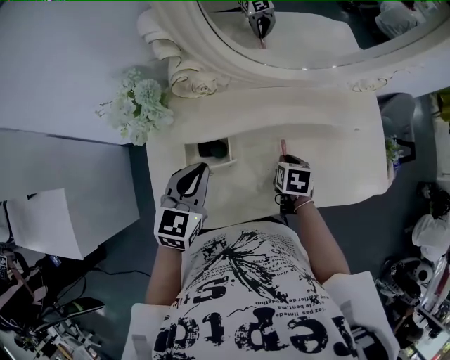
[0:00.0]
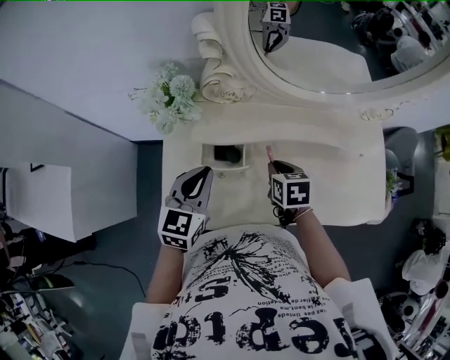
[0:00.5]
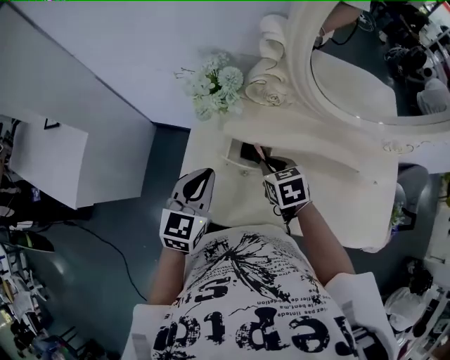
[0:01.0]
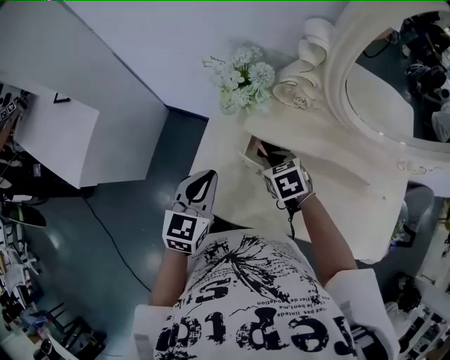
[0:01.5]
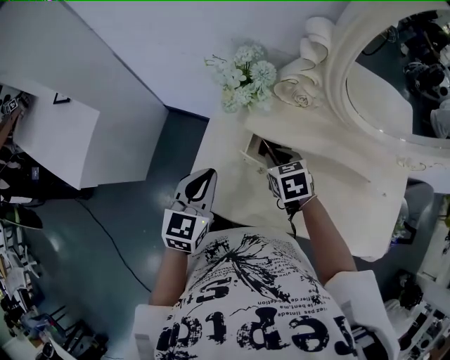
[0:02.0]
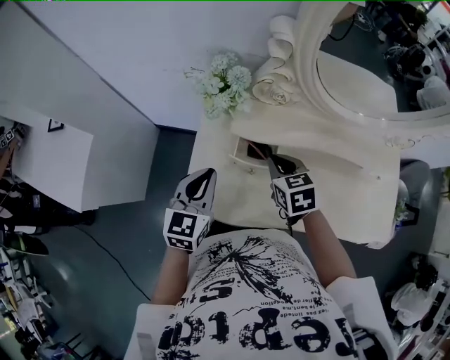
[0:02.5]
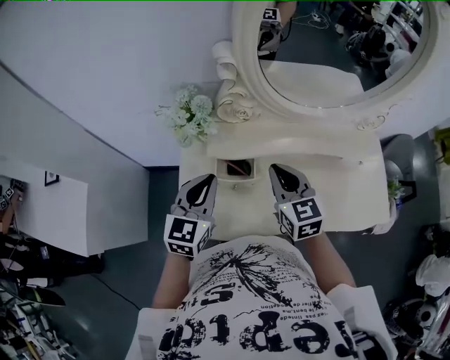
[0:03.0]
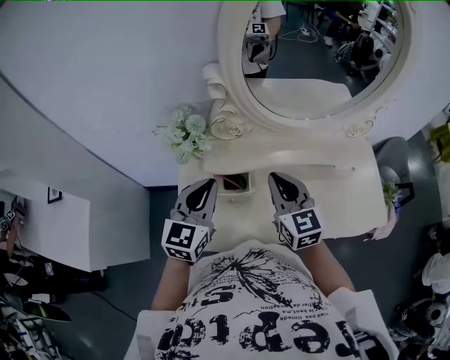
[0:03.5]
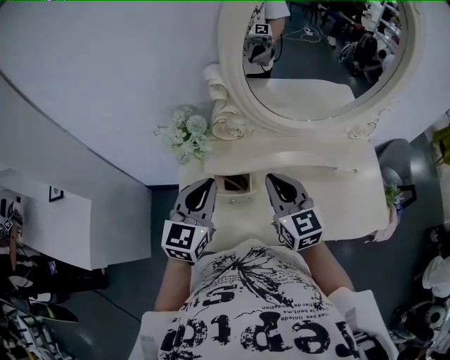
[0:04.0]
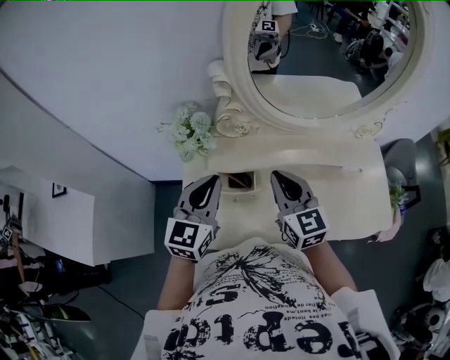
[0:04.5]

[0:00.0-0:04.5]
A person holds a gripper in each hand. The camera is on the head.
0:00.0 to 0:02.0: The left gripper shifts by about 15 cm, and rotates approximately 30 degrees, while the right gripper ends up about 25 cm from where it was, and rotates around the line of its fingers by about 40 degrees, counterclockwise from behind.
0:02.0 to 0:04.5: The right gripper travels upward and to the right by some 20 cm, and tips its fingers upward by some 40 degrees, while the left gripper shifts about 15 cm upward, to the right and forward, and rotates about 20 degrees.

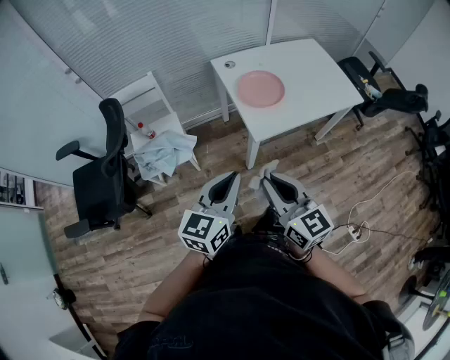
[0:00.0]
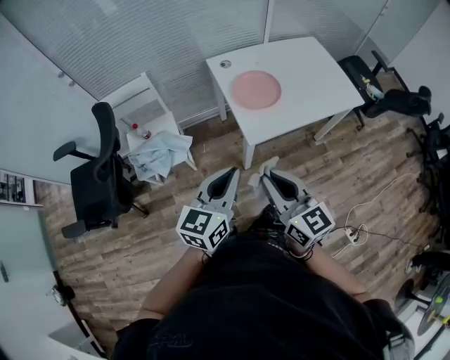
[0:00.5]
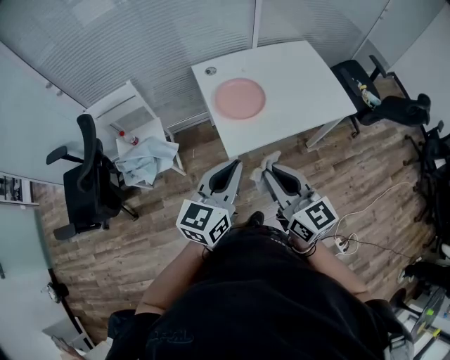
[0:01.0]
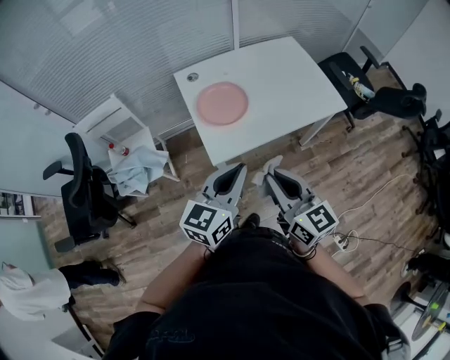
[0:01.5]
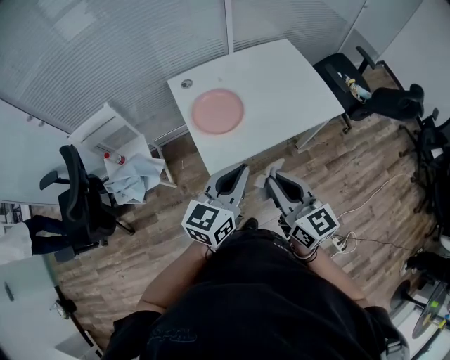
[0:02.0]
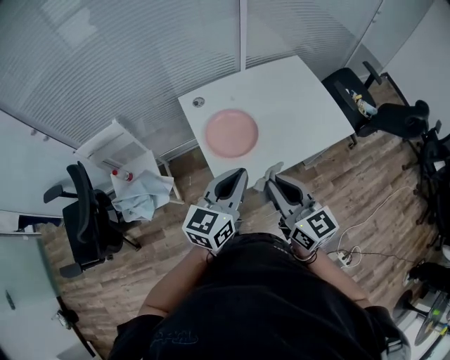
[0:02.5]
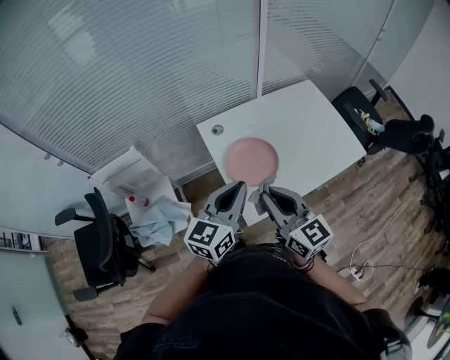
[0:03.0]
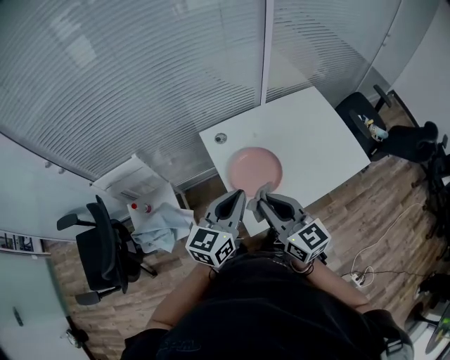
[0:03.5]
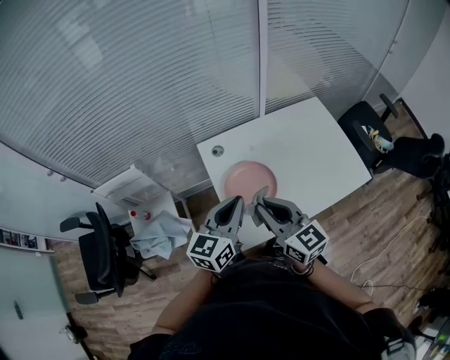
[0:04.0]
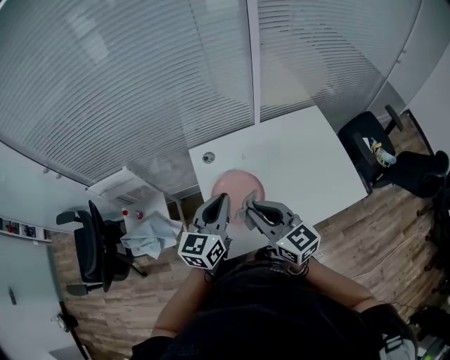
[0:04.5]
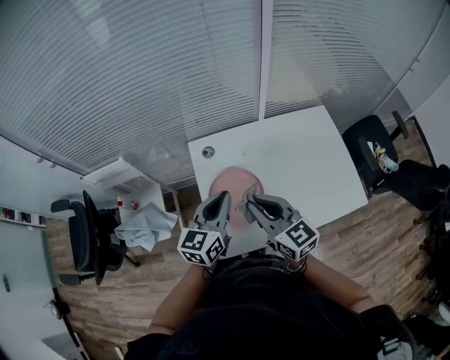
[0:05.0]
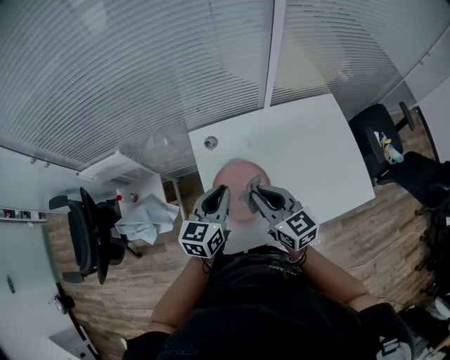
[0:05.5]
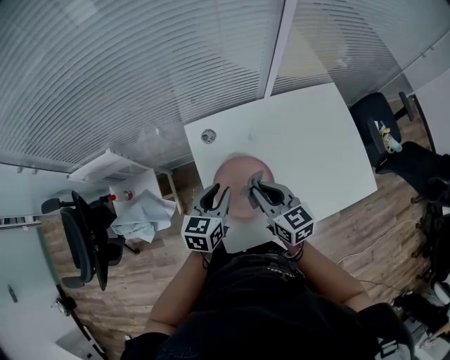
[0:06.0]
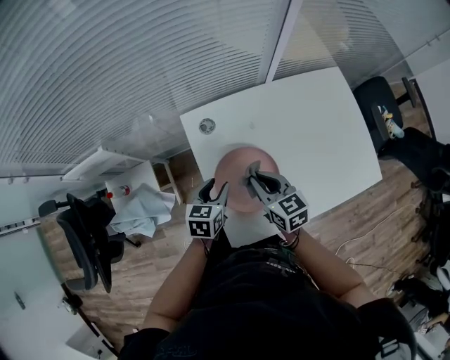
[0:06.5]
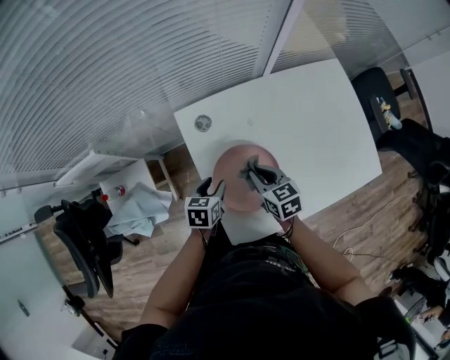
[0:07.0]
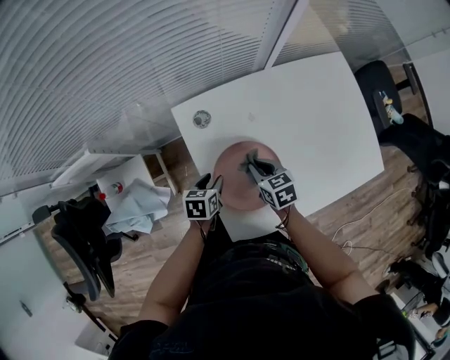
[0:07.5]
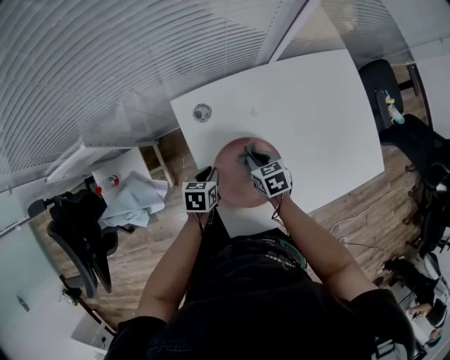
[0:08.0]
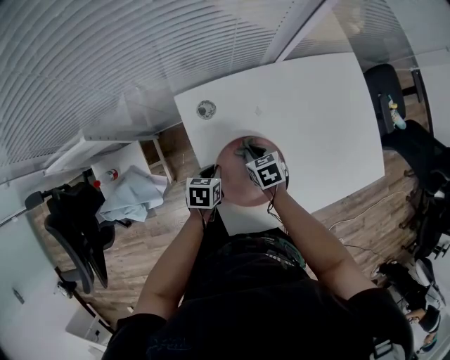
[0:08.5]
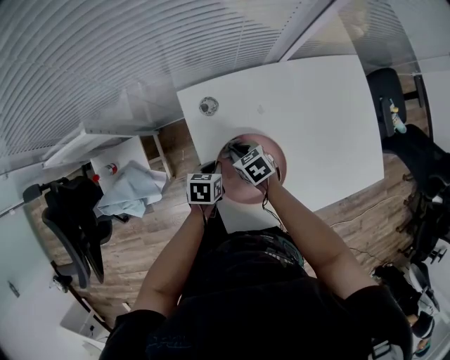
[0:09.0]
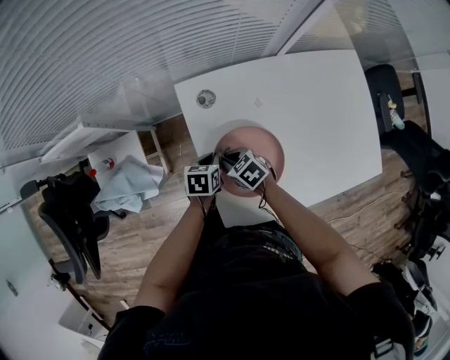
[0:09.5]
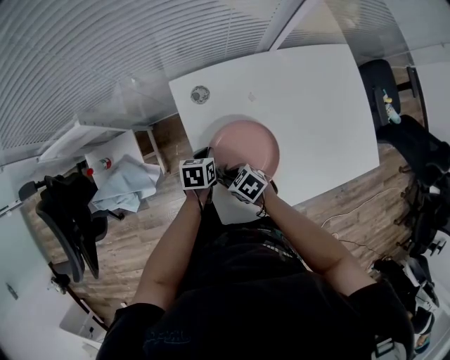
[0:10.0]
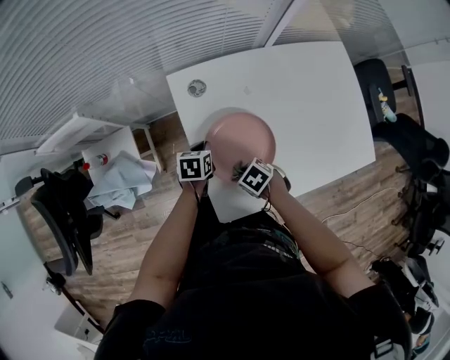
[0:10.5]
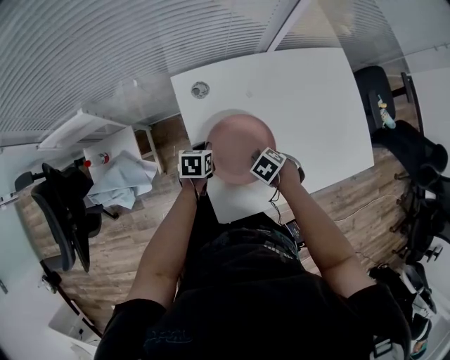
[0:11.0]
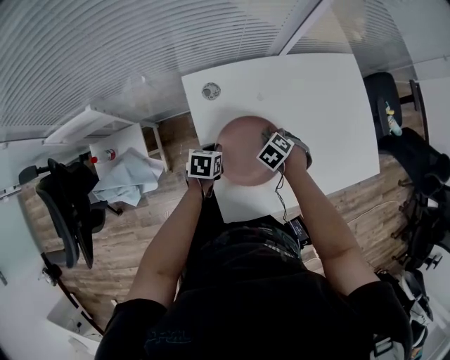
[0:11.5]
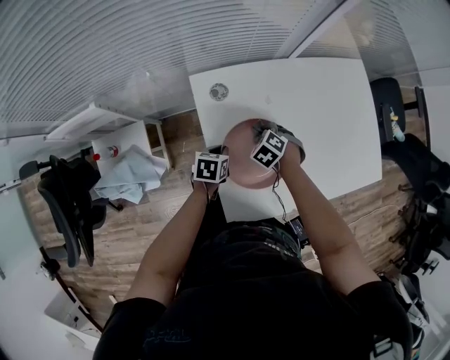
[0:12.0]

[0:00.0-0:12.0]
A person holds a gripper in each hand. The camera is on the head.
0:00.0 to 0:02.0: Both grippers travel together to the right and forward, roughly 30 cm.
0:02.0 to 0:04.0: Both grippers travel together forward and to the left, some 25 cm.
0:04.0 to 0:06.0: Both grippers travel together downward and forward, about 20 cm. The left gripper changes its angle by roughly 20 degrees, and opens its fingers.
0:06.0 to 0:08.0: Both grippers move downward, roughly 20 cm. The left gripper changes its angle by some 30 degrees; the right gripper points its fingers about 30 degrees further downward.
0:08.0 to 0:10.0: The right gripper ends up about 15 cm from where it was, and changes its angle by approximately 30 degrees.
0:10.0 to 0:12.0: The right gripper changes place by approximately 20 cm, and turns by some 40 degrees.

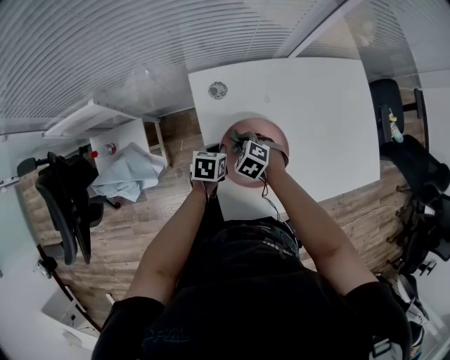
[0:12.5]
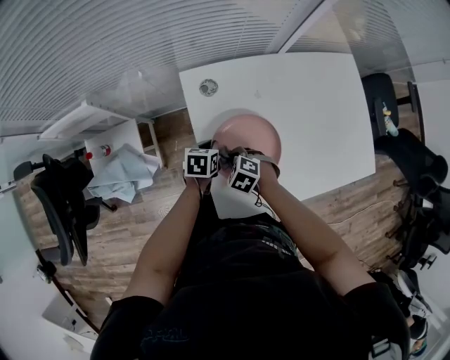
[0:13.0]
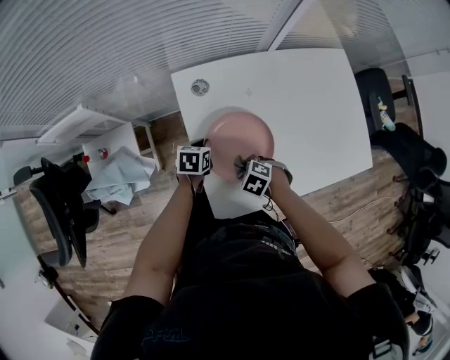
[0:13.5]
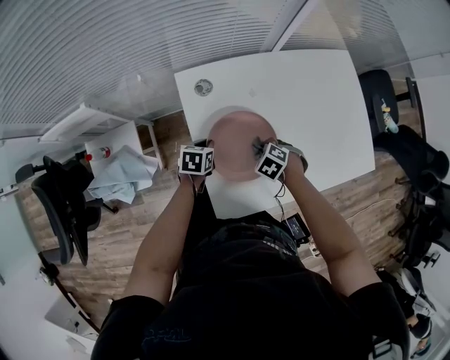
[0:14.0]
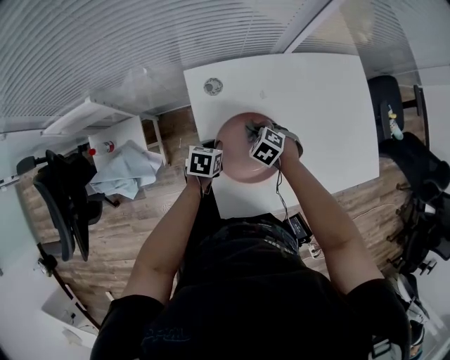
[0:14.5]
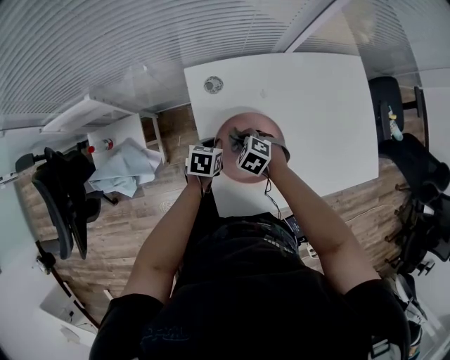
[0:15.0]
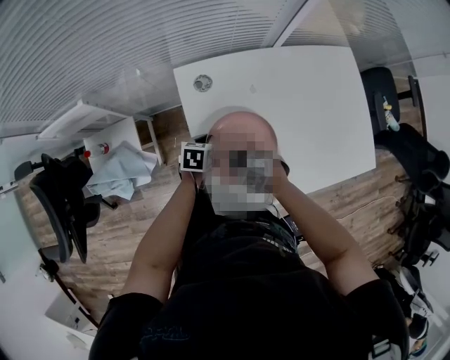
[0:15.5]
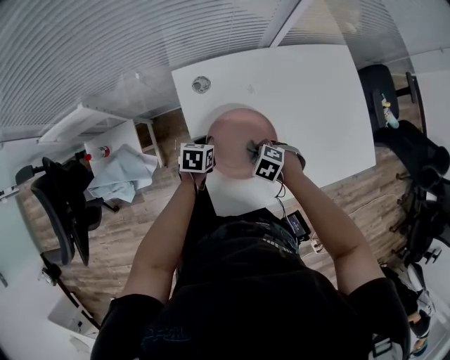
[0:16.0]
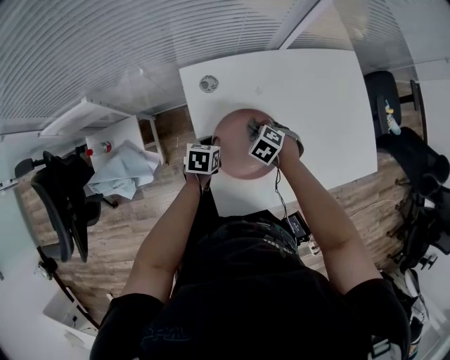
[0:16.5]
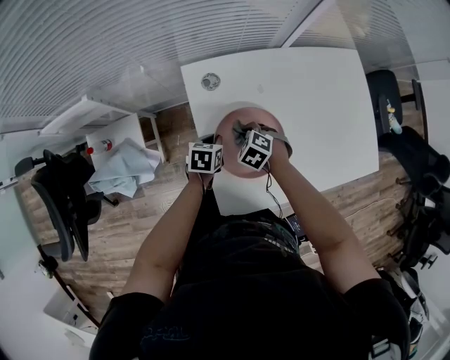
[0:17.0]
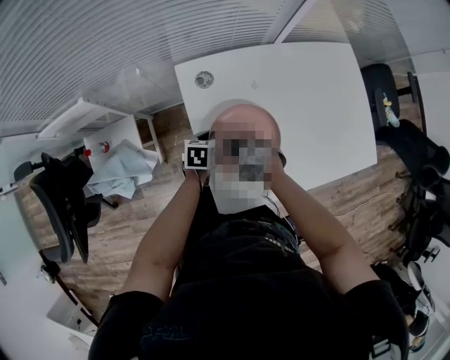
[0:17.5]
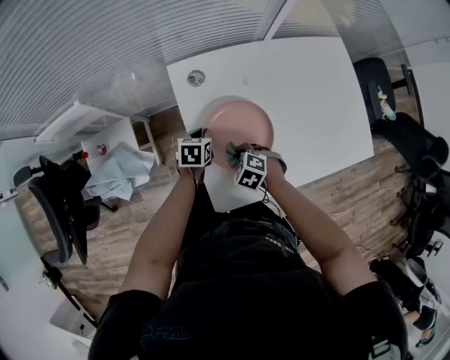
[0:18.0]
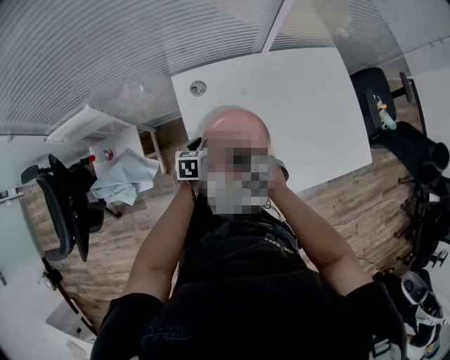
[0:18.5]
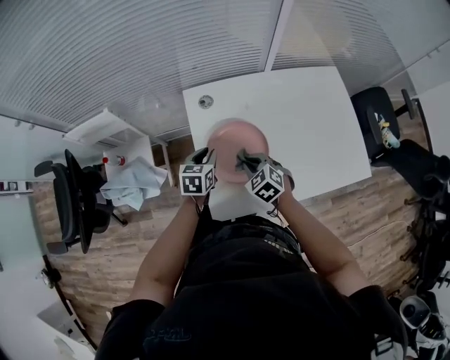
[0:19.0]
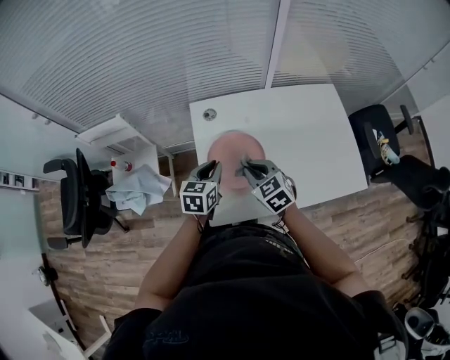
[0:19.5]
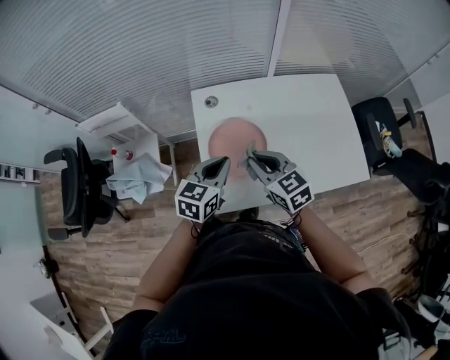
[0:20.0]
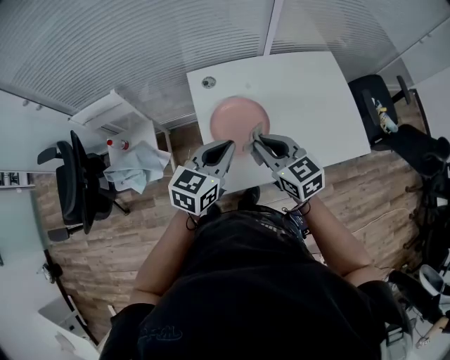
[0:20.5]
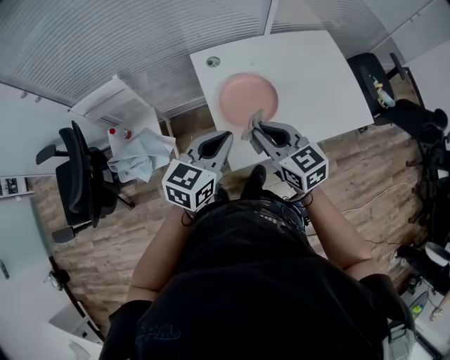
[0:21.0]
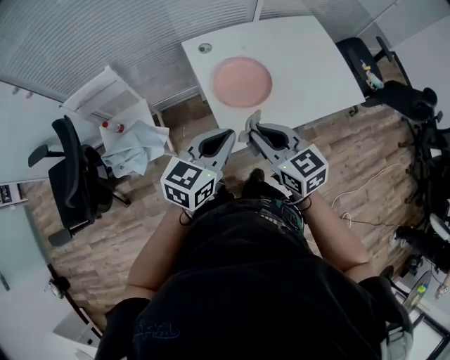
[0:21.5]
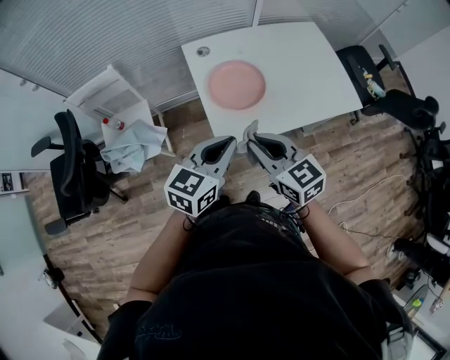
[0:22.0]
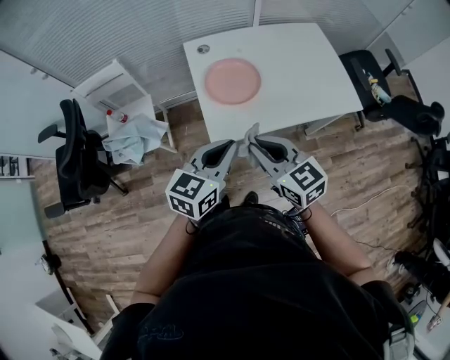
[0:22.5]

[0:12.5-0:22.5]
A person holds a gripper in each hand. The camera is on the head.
0:16.5 to 0:18.5: The right gripper moves about 10 cm.
0:18.5 to 0:20.5: The left gripper goes some 30 cm upward and backward, and swivels roughly 30 degrees. Meanwhile the right gripper is displaced upward by about 25 cm, and angles its fingers upward, by some 40 degrees.
0:20.5 to 0:22.5: Both grippers travel together backward, about 20 cm.
